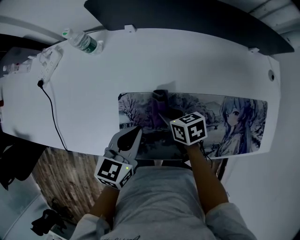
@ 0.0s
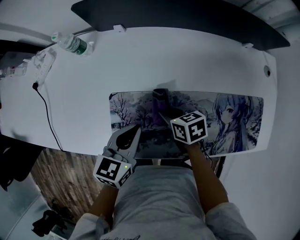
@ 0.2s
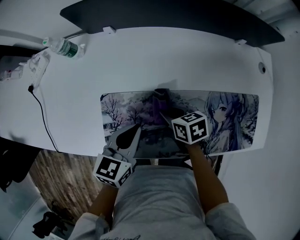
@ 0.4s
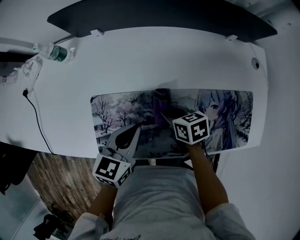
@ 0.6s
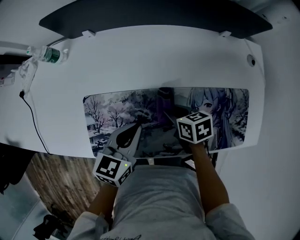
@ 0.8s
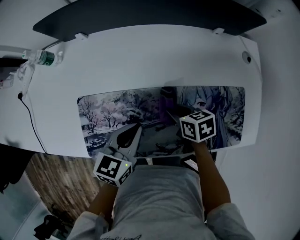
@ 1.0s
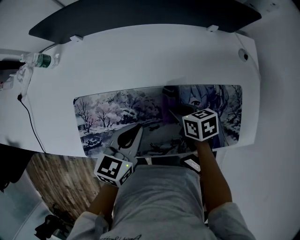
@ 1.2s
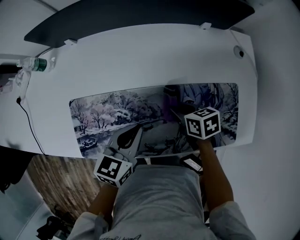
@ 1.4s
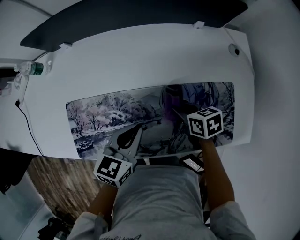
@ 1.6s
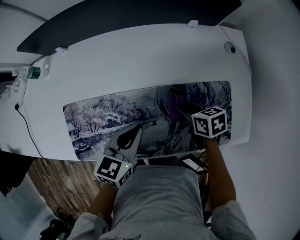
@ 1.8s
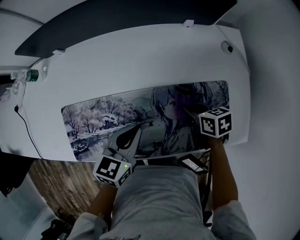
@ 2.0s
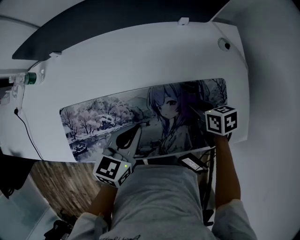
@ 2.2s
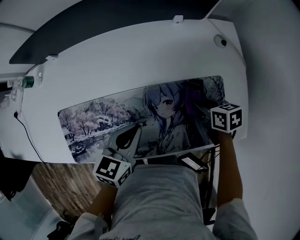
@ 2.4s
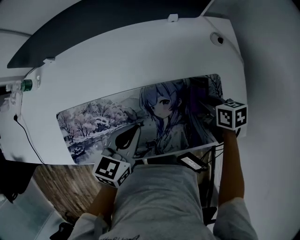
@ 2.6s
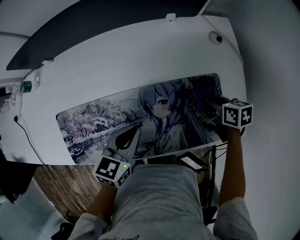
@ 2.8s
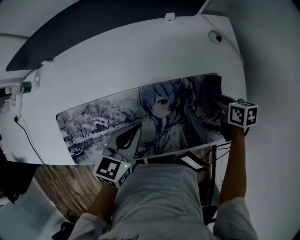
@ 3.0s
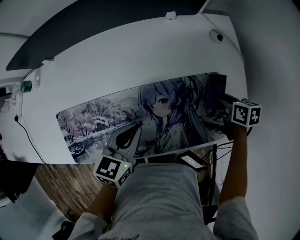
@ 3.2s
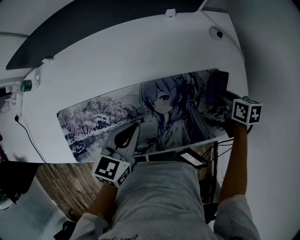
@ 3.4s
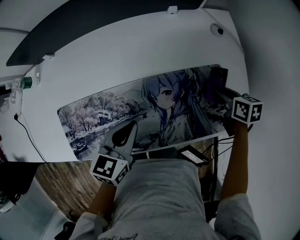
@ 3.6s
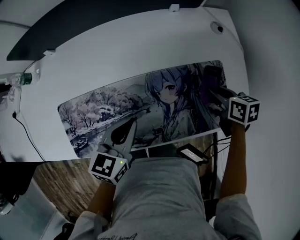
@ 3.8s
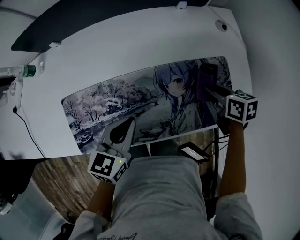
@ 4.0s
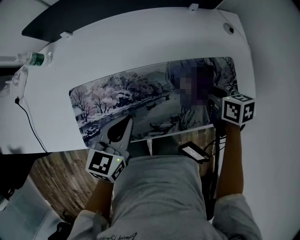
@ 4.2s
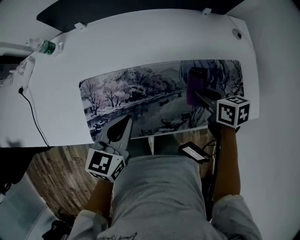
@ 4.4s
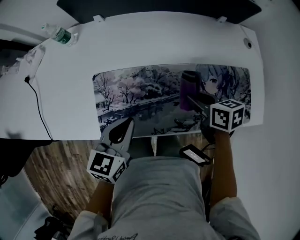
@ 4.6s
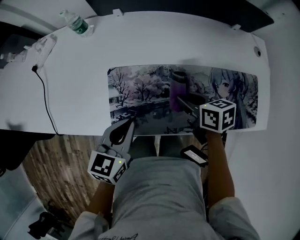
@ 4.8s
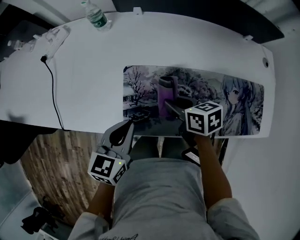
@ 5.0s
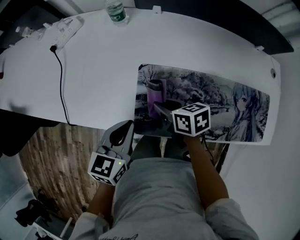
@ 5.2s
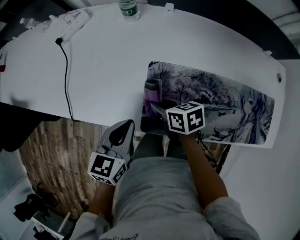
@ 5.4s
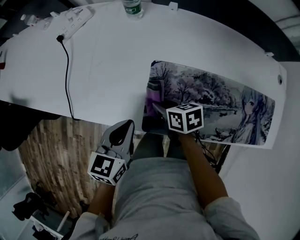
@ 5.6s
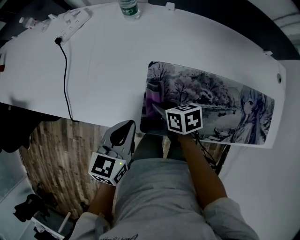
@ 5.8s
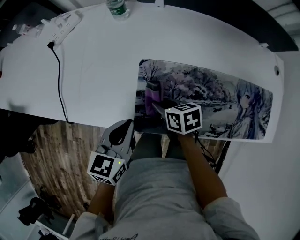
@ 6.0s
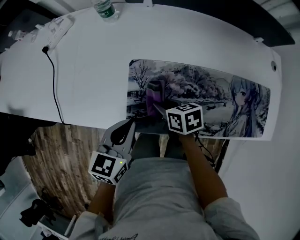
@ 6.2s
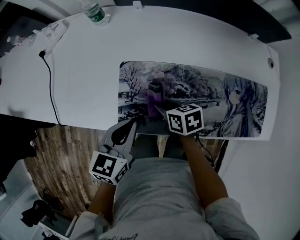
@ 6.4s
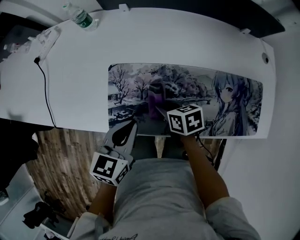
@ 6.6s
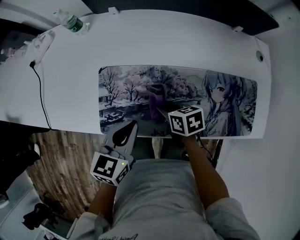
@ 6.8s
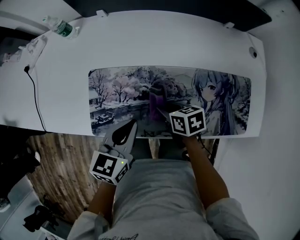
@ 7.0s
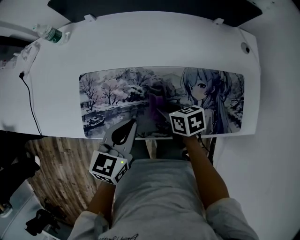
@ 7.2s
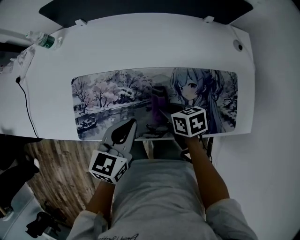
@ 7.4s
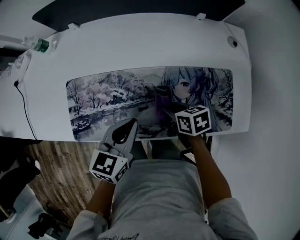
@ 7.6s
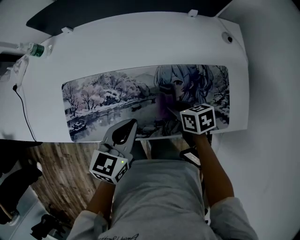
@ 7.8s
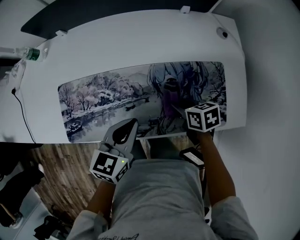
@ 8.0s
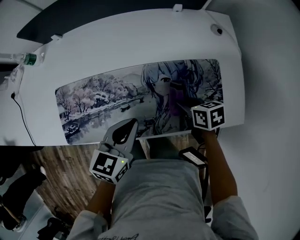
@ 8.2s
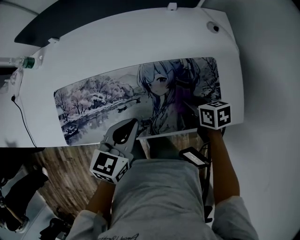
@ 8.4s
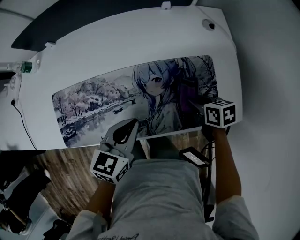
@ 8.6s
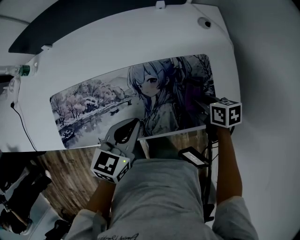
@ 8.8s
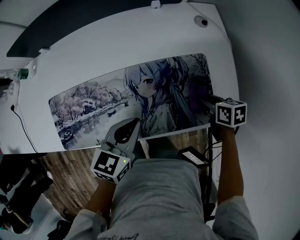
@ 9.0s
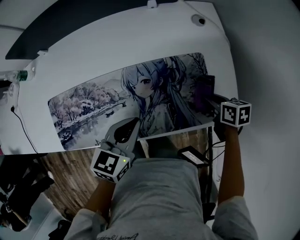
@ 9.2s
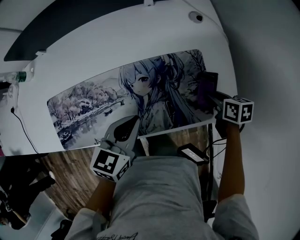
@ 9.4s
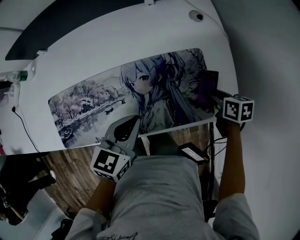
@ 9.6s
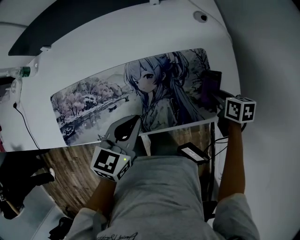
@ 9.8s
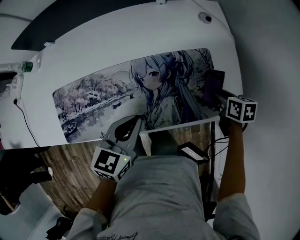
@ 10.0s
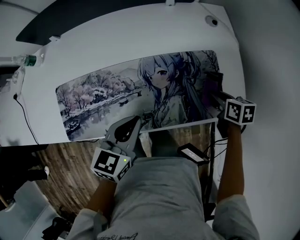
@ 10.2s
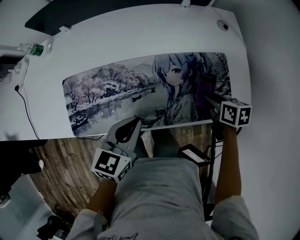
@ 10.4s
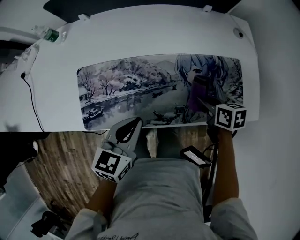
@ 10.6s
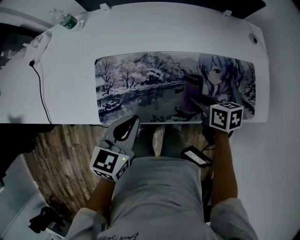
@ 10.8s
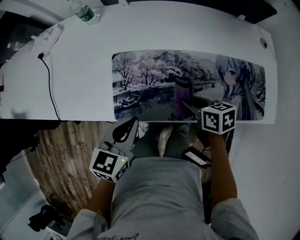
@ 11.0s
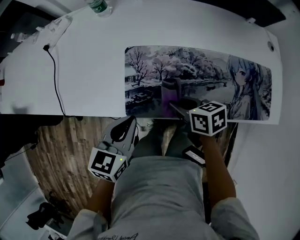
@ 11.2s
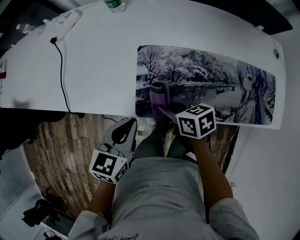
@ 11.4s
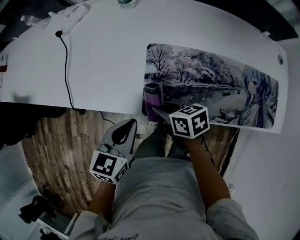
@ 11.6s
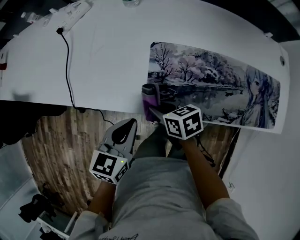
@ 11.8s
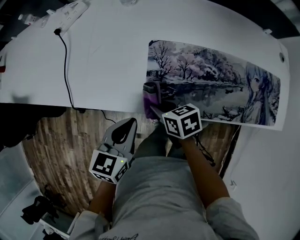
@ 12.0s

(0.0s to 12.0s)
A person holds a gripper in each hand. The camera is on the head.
0.0s - 1.6s: The two grippers go roughly 30 cm to the right.
1.6s - 3.0s: The left gripper shifts approximately 10 cm to the right; the right gripper moves to the right, some 25 cm.
3.0s - 4.4s: Both grippers travel together to the left, approximately 25 cm.
4.4s - 6.0s: The right gripper shifts some 40 cm to the left. The left gripper moves to the left, about 25 cm.
6.0s - 7.6s: Both grippers travel together to the right, roughly 35 cm.
7.6s - 9.0s: The left gripper shifts approximately 15 cm to the right. Meanwhile the right gripper goes some 30 cm to the right.
9.0s - 10.4s: Both grippers travel together to the left, approximately 10 cm.
10.4s - 12.0s: The left gripper changes place by roughly 40 cm. The right gripper changes place by roughly 60 cm, and rotates roughly 30 degrees.

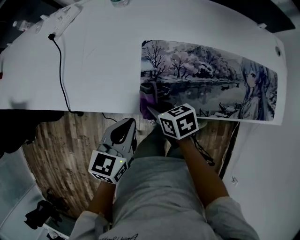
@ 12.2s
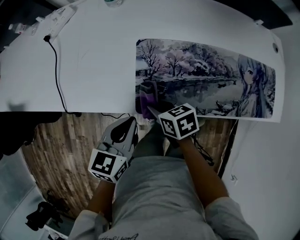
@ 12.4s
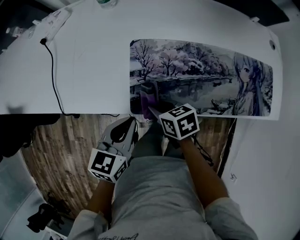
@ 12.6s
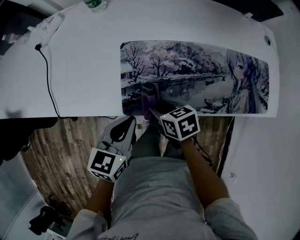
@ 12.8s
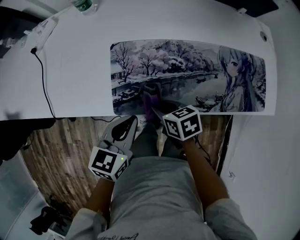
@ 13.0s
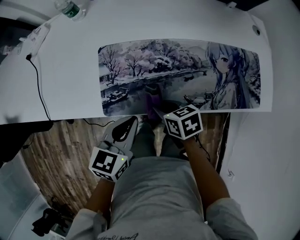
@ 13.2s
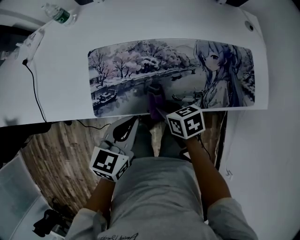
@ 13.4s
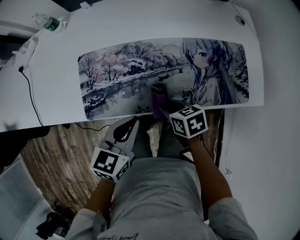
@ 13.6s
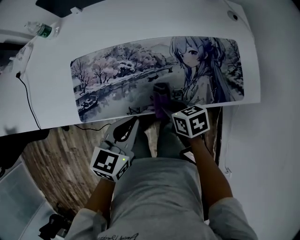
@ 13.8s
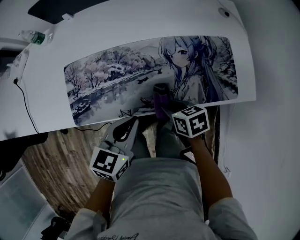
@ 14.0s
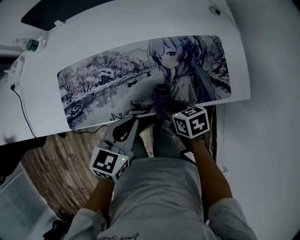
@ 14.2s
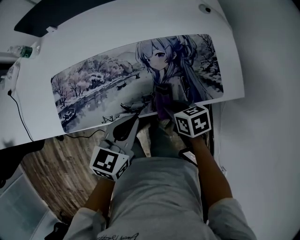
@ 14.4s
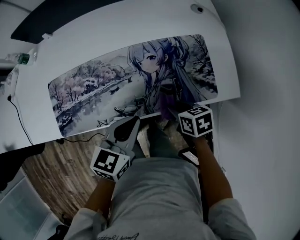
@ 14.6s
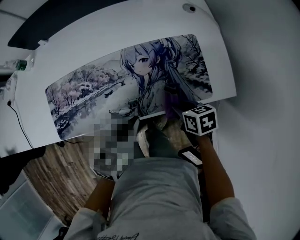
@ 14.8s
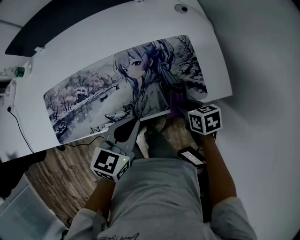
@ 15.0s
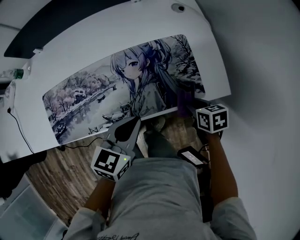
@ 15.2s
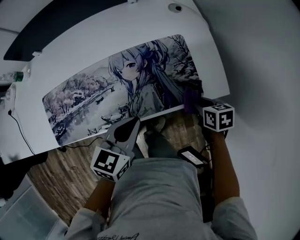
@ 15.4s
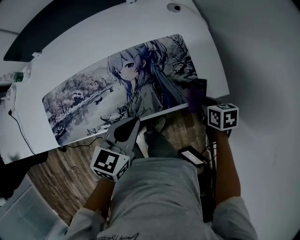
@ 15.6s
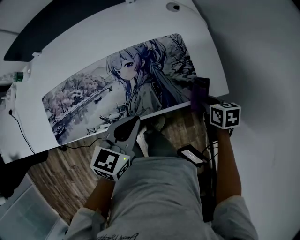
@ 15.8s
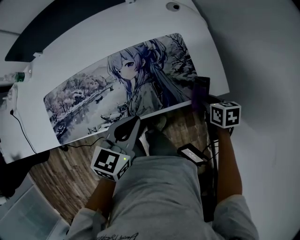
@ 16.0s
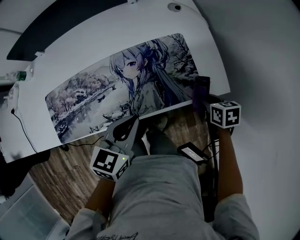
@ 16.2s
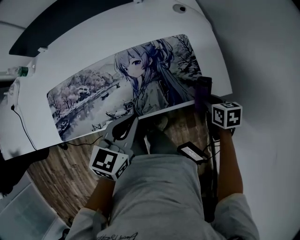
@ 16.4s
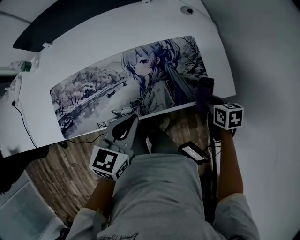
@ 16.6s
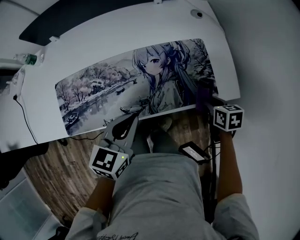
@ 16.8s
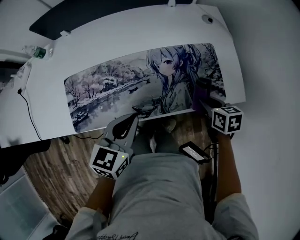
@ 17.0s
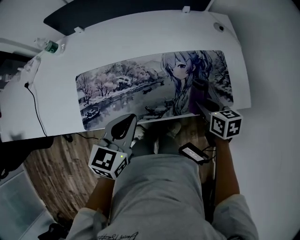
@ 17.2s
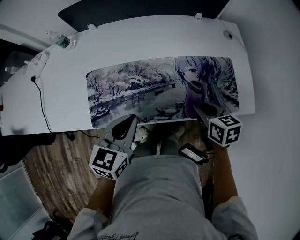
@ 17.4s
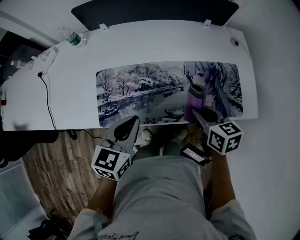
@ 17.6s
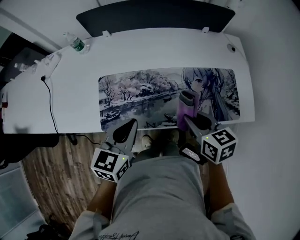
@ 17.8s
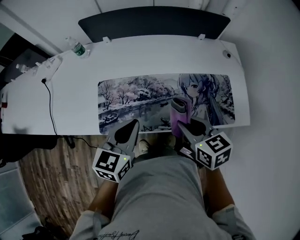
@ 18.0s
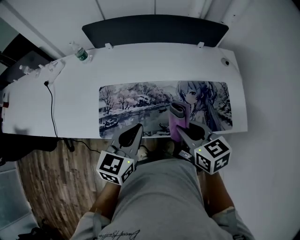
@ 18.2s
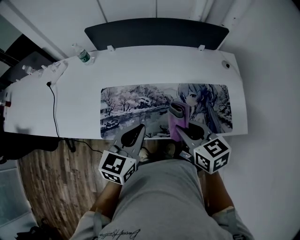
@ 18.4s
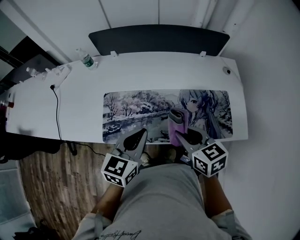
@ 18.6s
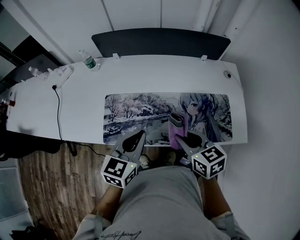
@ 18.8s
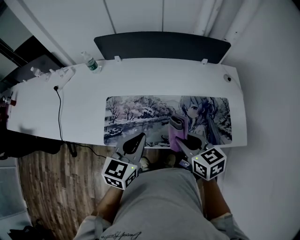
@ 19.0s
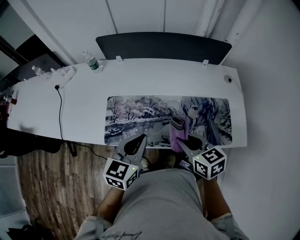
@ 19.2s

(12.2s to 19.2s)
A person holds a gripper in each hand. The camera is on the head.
12.2s - 13.6s: Both grippers move to the right, roughly 25 cm.
13.6s - 15.0s: Both grippers travel together to the right, some 25 cm.
15.0s - 16.4s: The right gripper shifts about 10 cm to the right.
16.4s - 17.8s: The left gripper is displaced to the left by roughly 25 cm, while the right gripper shifts about 40 cm to the left and upward, and turns by about 30 degrees.
17.8s - 19.2s: The left gripper ends up approximately 5 cm from where it was.

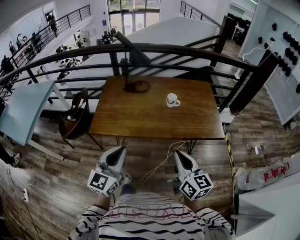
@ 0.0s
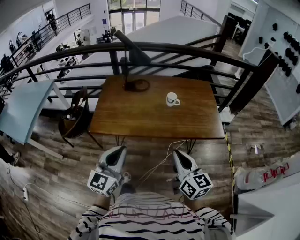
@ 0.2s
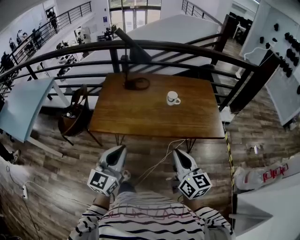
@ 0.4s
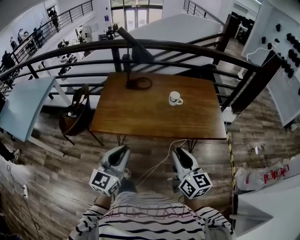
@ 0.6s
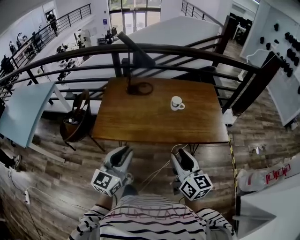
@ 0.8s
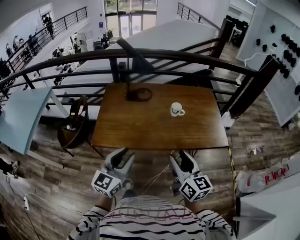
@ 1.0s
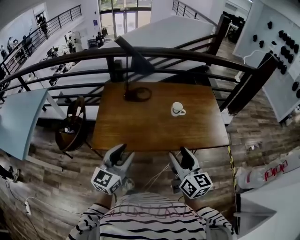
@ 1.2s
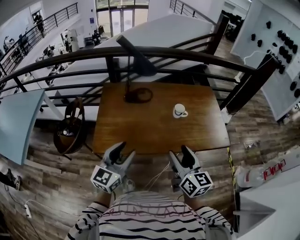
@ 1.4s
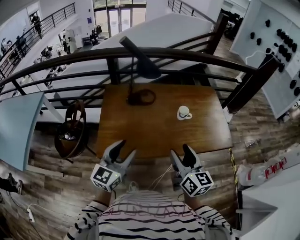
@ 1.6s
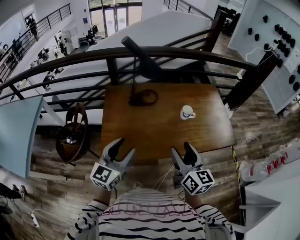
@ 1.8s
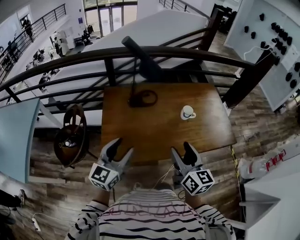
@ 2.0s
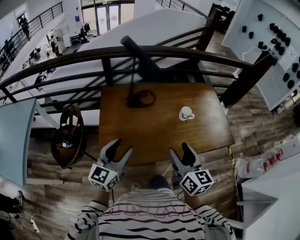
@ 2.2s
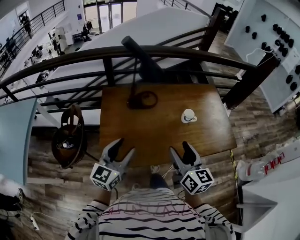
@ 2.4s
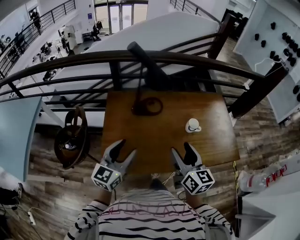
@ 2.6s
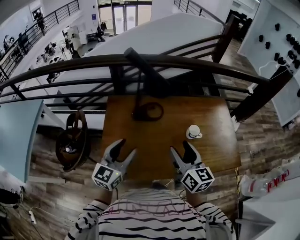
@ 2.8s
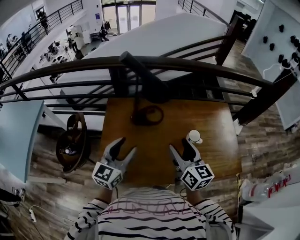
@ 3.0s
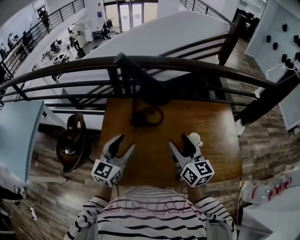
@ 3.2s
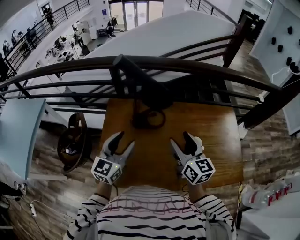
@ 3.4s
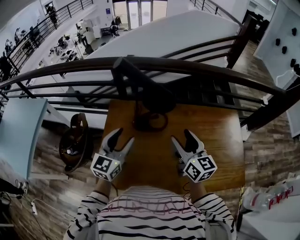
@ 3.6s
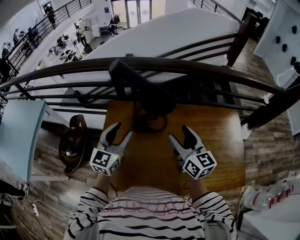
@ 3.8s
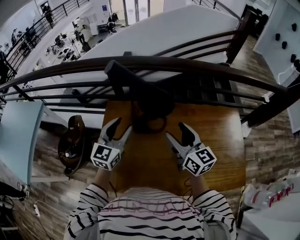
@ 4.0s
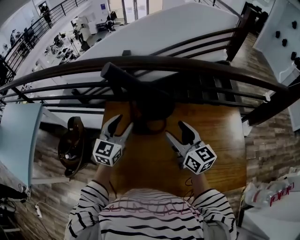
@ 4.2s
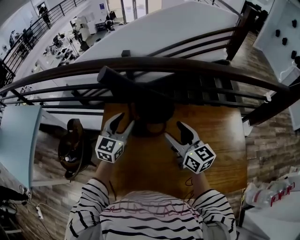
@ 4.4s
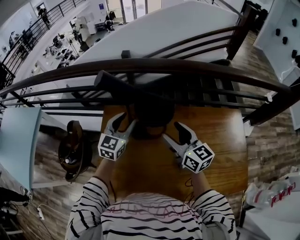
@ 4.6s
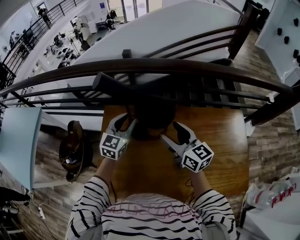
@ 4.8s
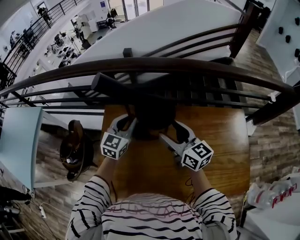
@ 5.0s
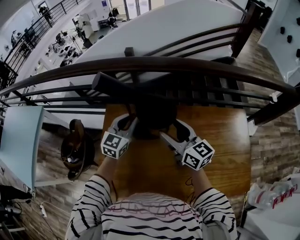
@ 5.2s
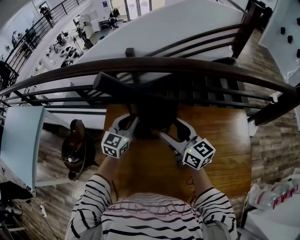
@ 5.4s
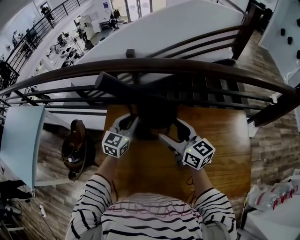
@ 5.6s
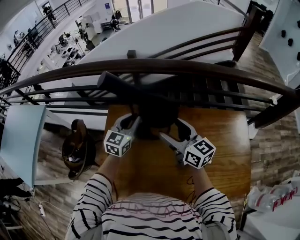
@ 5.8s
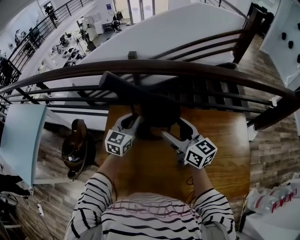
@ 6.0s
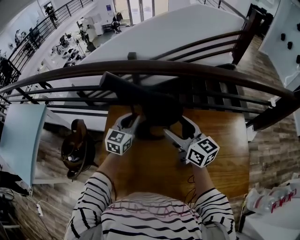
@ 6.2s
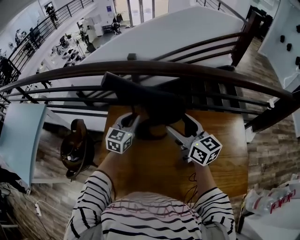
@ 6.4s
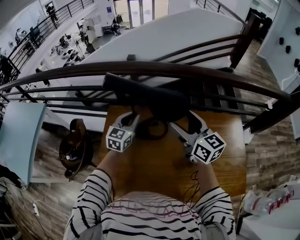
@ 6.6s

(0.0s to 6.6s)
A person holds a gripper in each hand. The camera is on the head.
0.0s - 1.6s: The two grippers go about 30 cm forward and to the left. The left gripper opens its fingers, while the right gripper opens up.
1.6s - 3.2s: The two grippers go about 30 cm forward.
3.2s - 5.0s: The grippers both shift forward by about 25 cm. The left gripper closes its fingers.
5.0s - 6.6s: The right gripper travels upward by some 10 cm.
